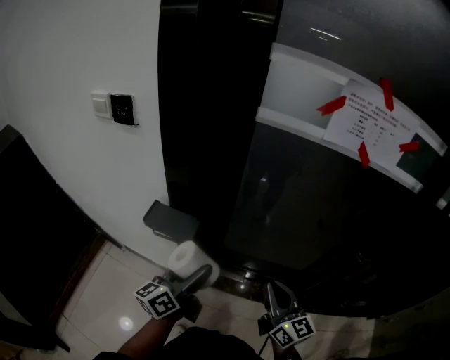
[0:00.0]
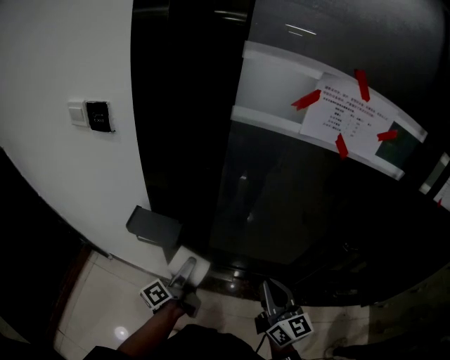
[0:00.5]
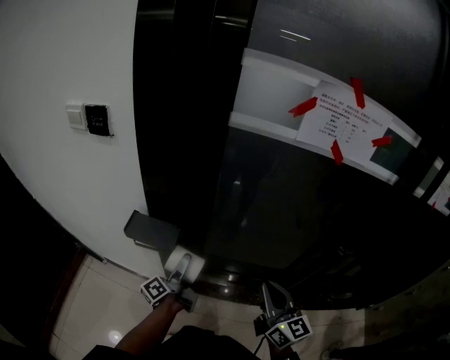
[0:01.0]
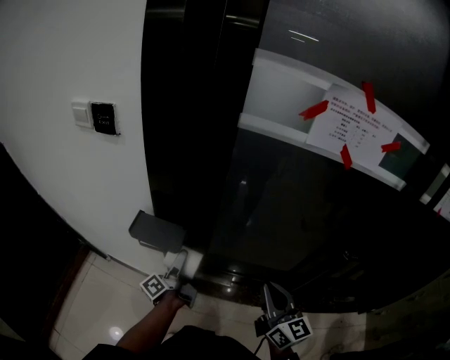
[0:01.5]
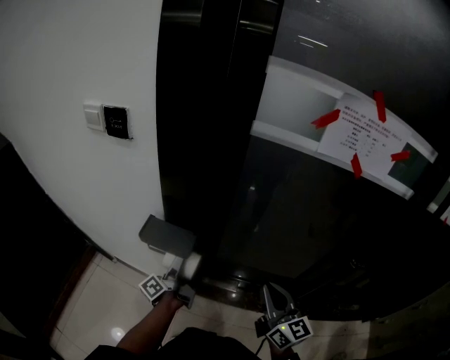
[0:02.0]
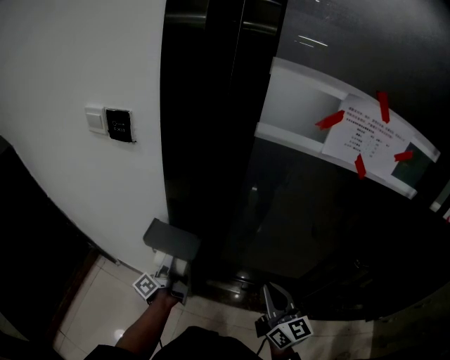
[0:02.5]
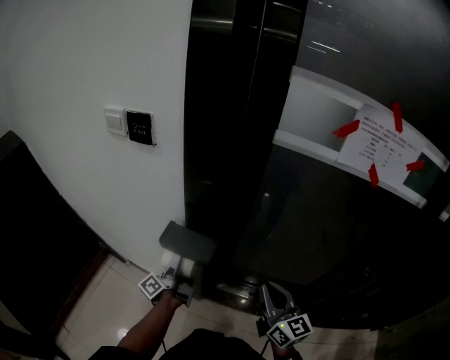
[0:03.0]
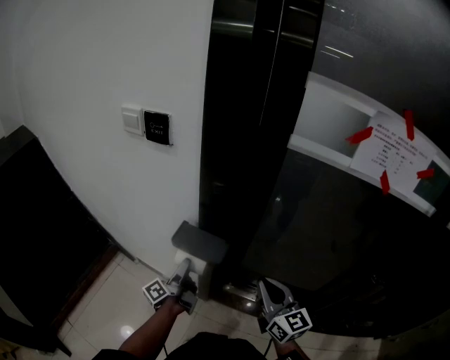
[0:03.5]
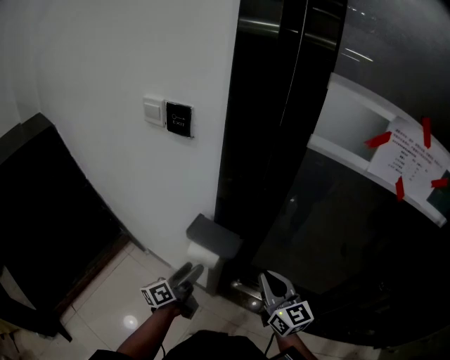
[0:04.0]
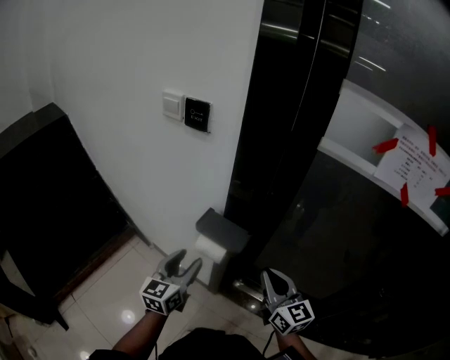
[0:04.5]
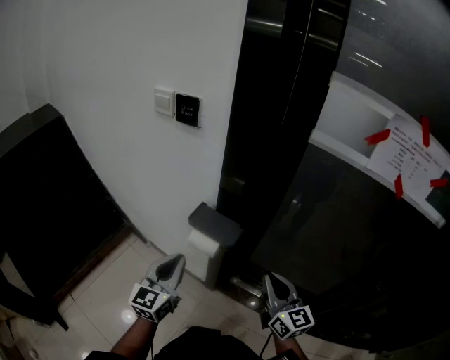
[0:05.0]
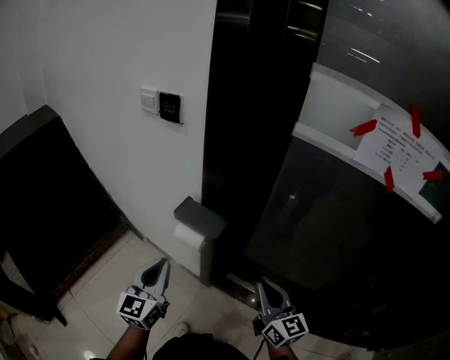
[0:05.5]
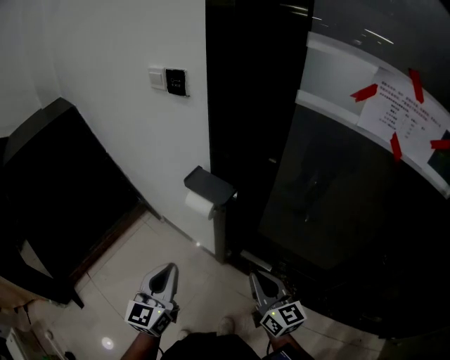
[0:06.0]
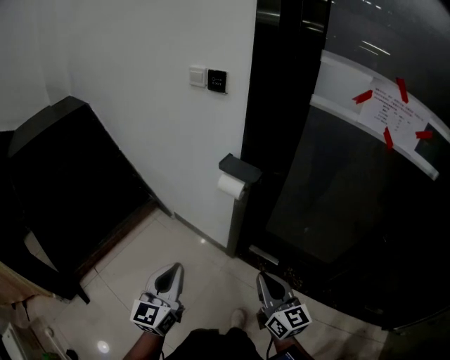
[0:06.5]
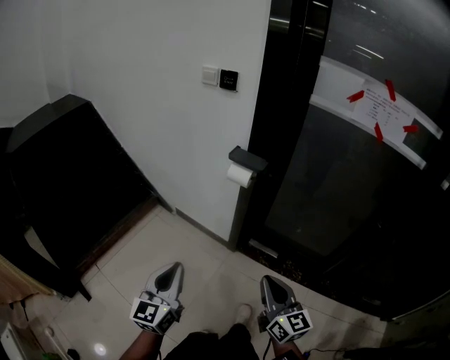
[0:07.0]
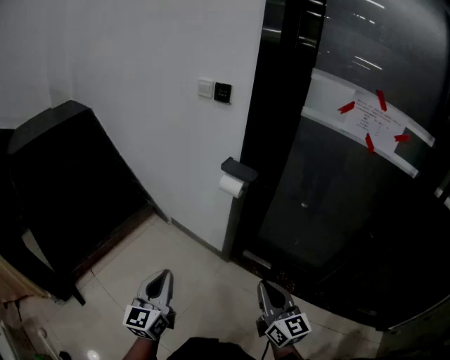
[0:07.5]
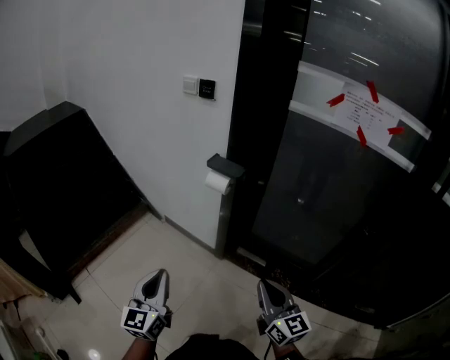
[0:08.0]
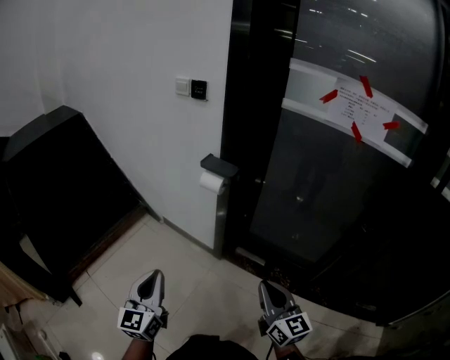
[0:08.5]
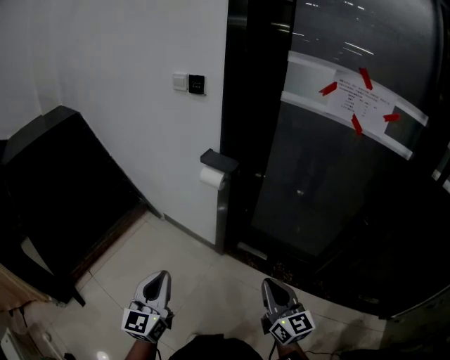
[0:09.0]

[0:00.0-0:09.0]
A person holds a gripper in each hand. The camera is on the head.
0:00.0 to 0:02.0: The left gripper is displaced downward and forward by some 15 cm, and twists roughly 40 degrees counterclockwise, seen from behind.
0:02.0 to 0:04.5: The right gripper shifts about 15 cm to the left and forward; the left gripper heads to the left, upward and backward, covering roughly 15 cm, rolls clockwise, seen from behind, by roughly 80 degrees, and closes.
0:04.5 to 0:07.0: Both grippers move backward, some 40 cm. The left gripper closes its fingers.
0:07.0 to 0:09.0: The right gripper moves to the right, roughly 10 cm, while the left gripper moves to the right, roughly 5 cm.

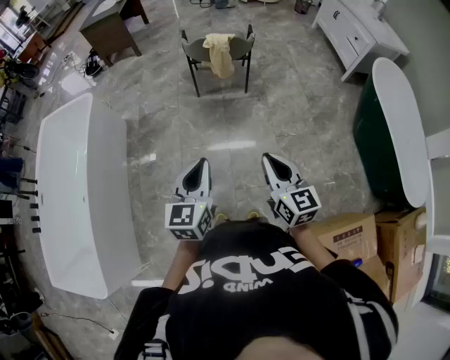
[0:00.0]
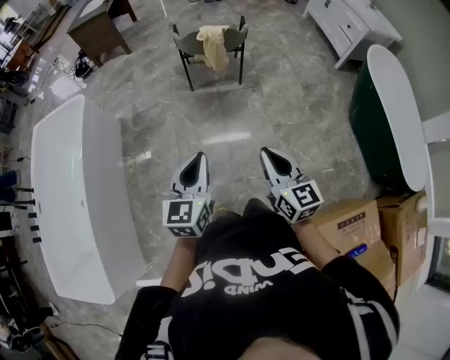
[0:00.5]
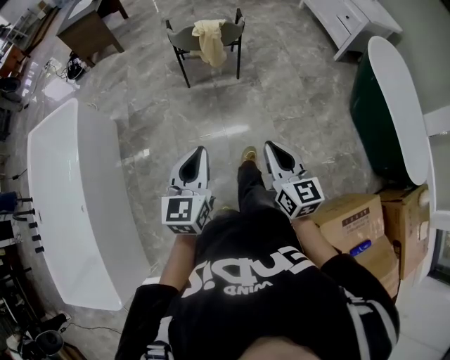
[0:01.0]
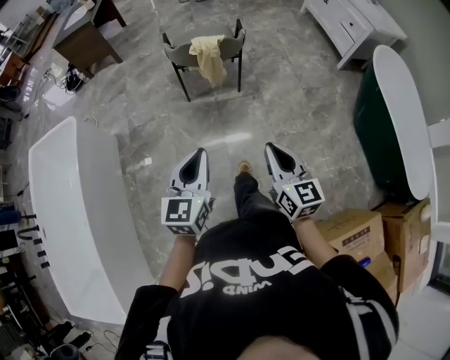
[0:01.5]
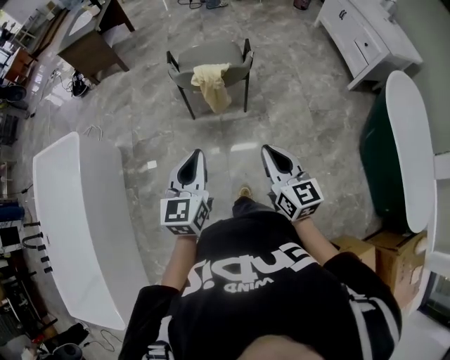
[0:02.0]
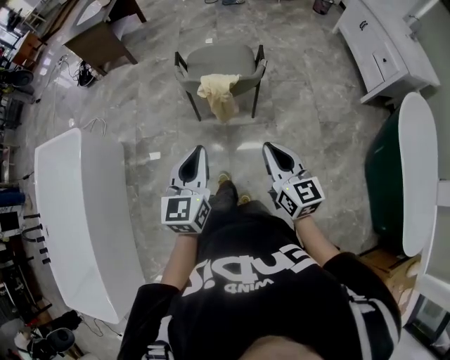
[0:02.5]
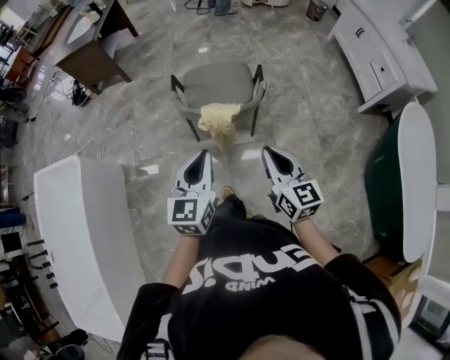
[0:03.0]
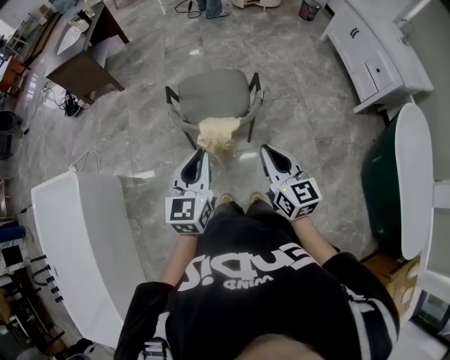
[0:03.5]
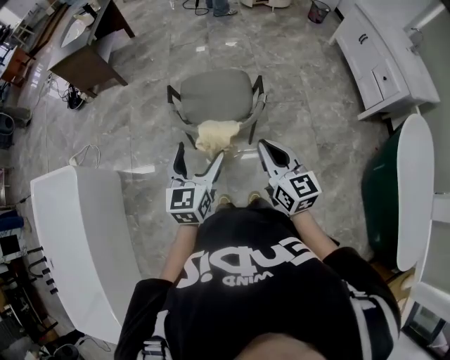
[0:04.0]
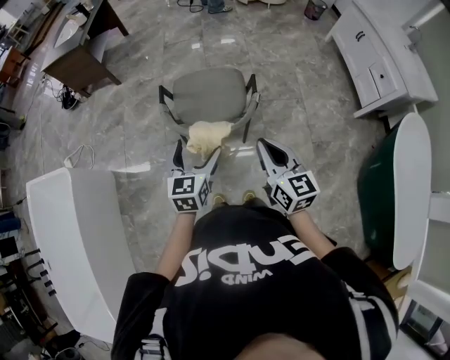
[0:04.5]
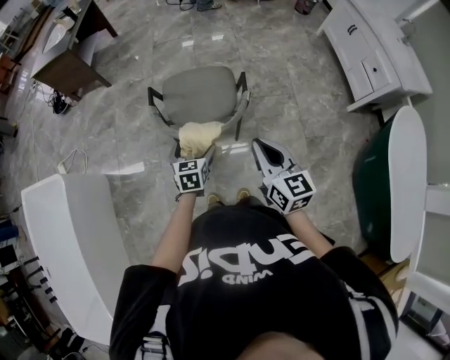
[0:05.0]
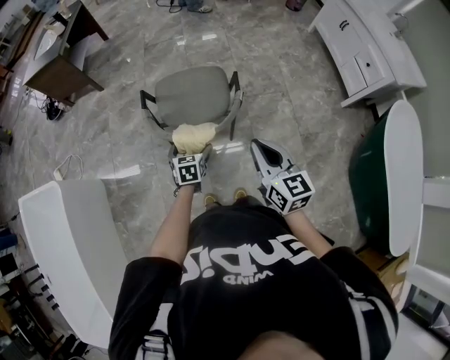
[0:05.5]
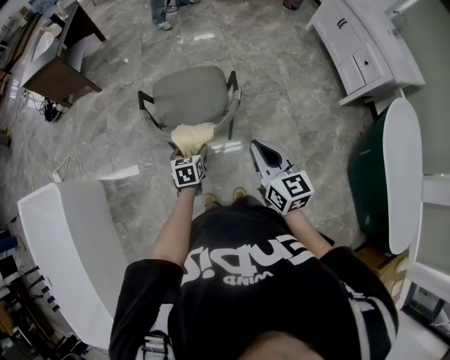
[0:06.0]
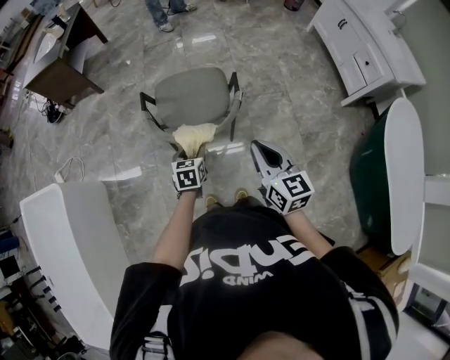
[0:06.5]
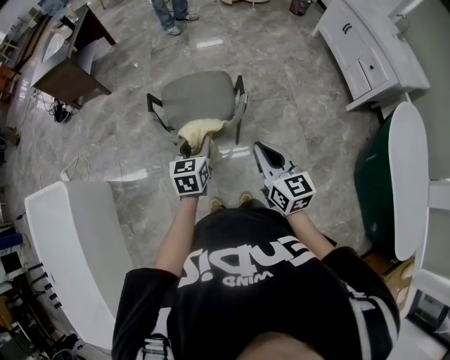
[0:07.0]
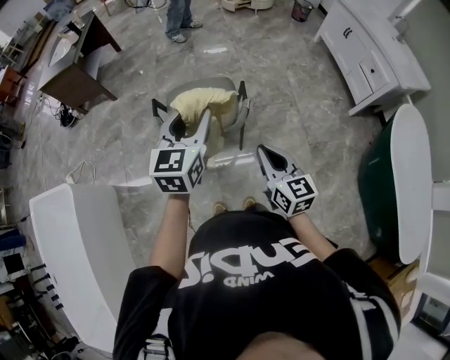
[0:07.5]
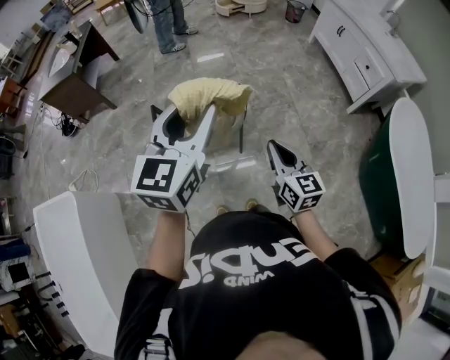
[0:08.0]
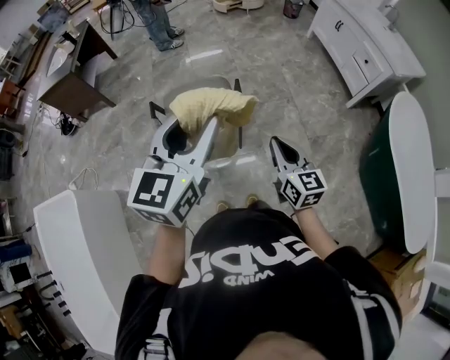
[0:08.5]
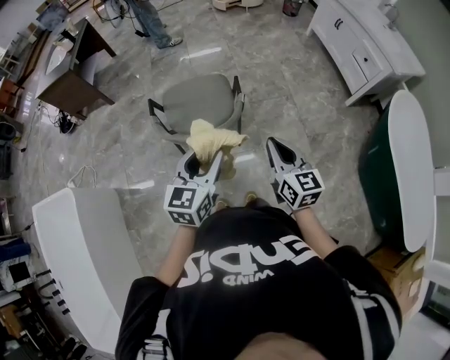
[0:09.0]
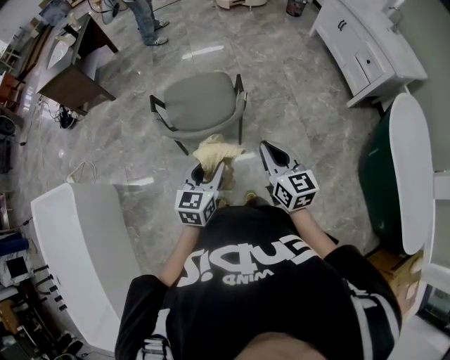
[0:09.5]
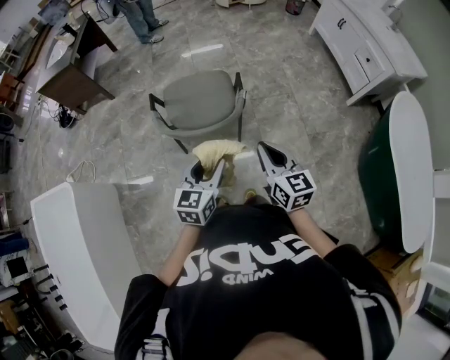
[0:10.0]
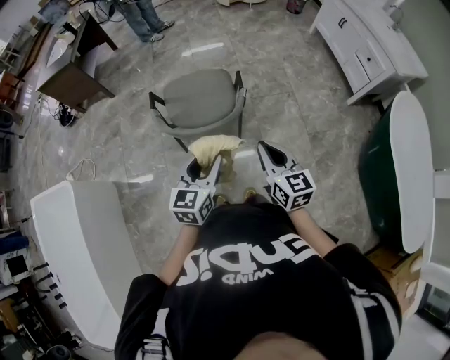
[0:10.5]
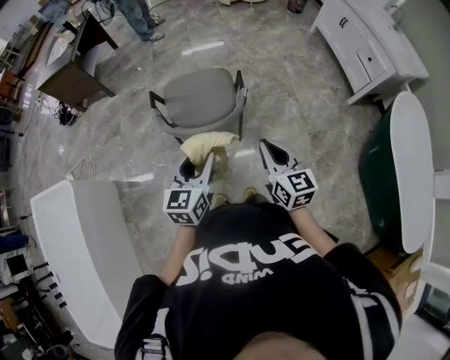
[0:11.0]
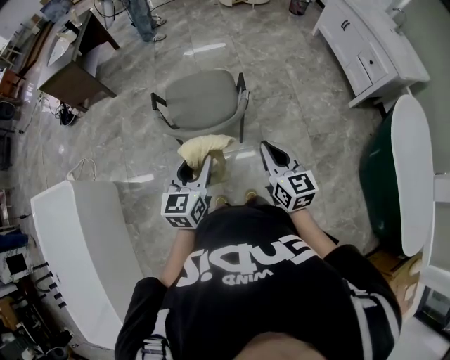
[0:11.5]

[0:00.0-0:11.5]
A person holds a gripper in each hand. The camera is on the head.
0:00.0 to 0:02.0: The two grippers go some 35 cm forward.
0:02.0 to 0:04.0: The two grippers go about 35 cm forward. The left gripper opens its fingers.
0:04.0 to 0:06.0: The left gripper shifts approximately 25 cm downward, and swivels some 30 degrees. Meanwhile the right gripper is displaced to the right by roughly 5 cm.
0:06.0 to 0:07.5: The left gripper heads upward, covering approximately 30 cm, and points its fingers some 30 degrees further upward.
0:07.5 to 0:09.5: The left gripper travels downward and backward by roughly 20 cm.
0:09.5 to 0:11.5: The left gripper ends up roughly 5 cm from where it was.

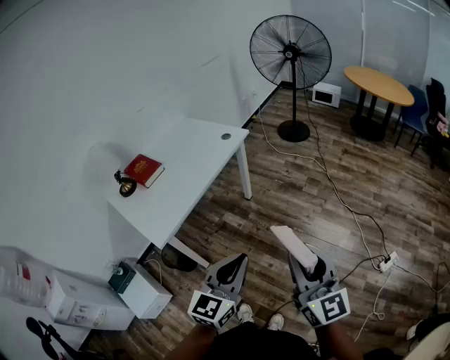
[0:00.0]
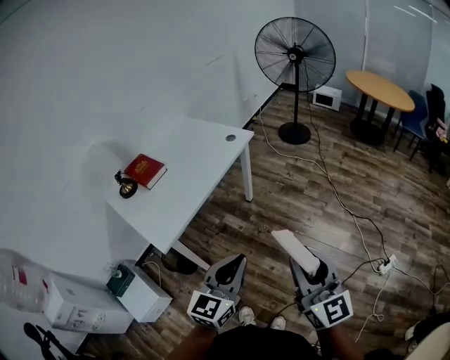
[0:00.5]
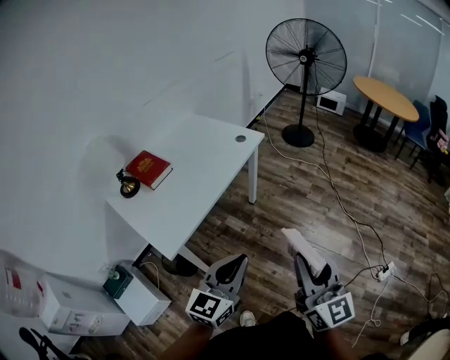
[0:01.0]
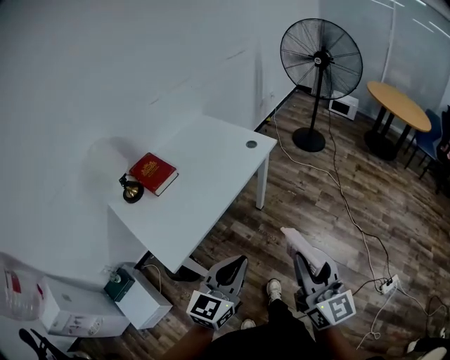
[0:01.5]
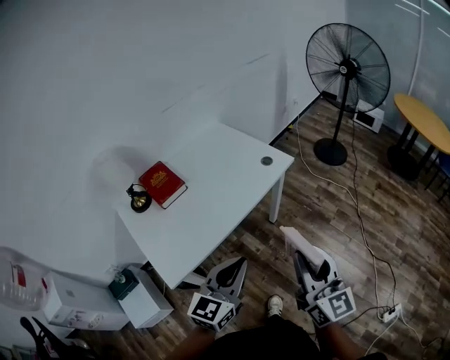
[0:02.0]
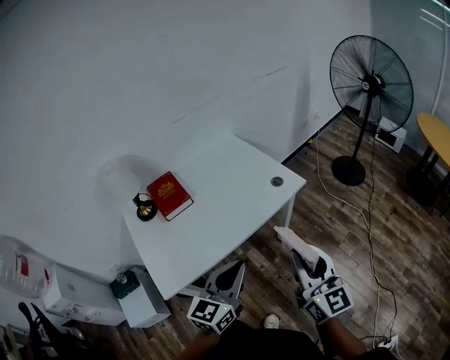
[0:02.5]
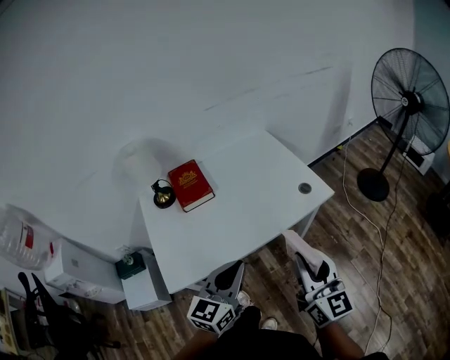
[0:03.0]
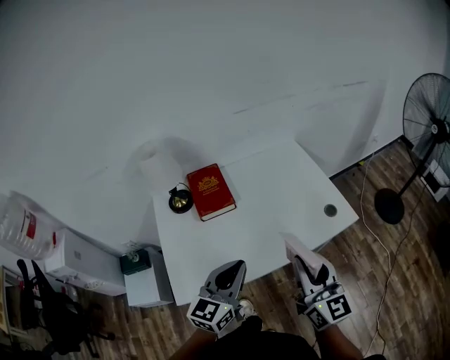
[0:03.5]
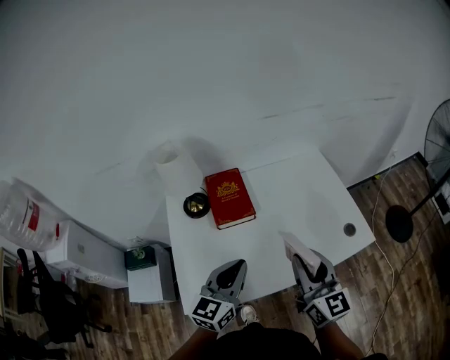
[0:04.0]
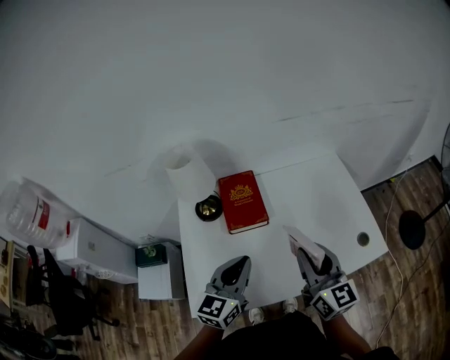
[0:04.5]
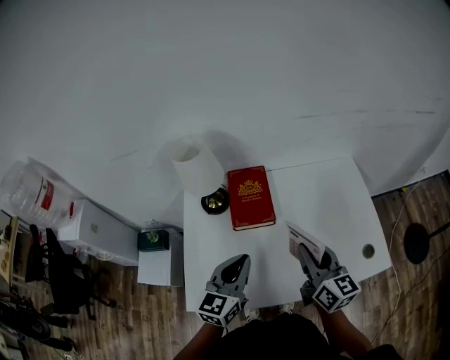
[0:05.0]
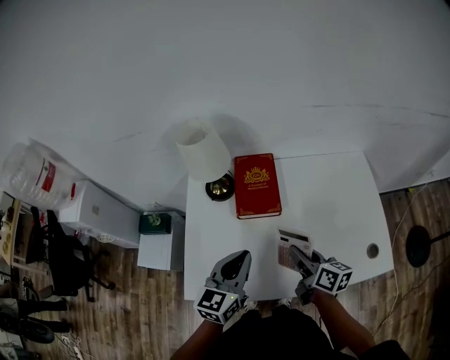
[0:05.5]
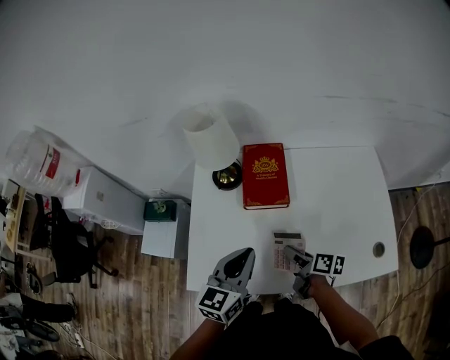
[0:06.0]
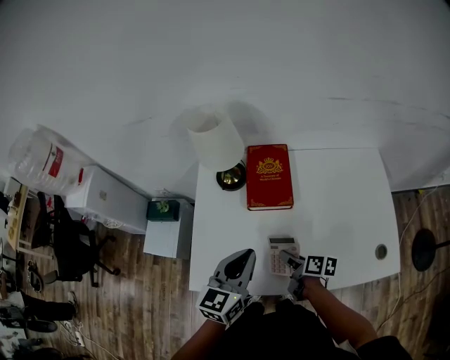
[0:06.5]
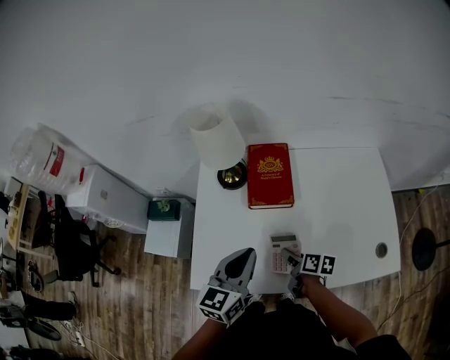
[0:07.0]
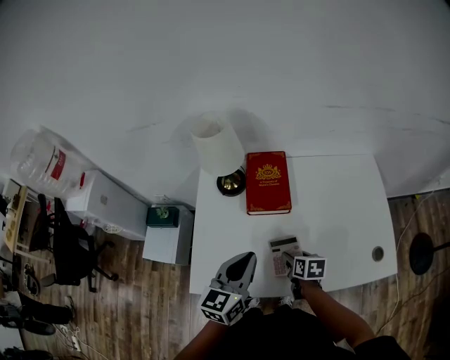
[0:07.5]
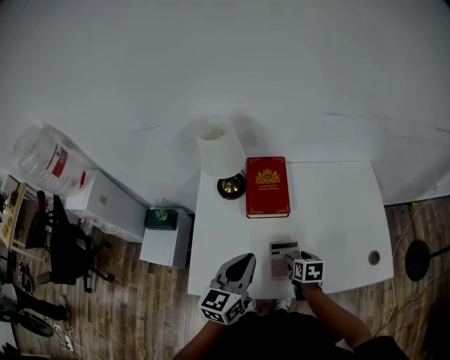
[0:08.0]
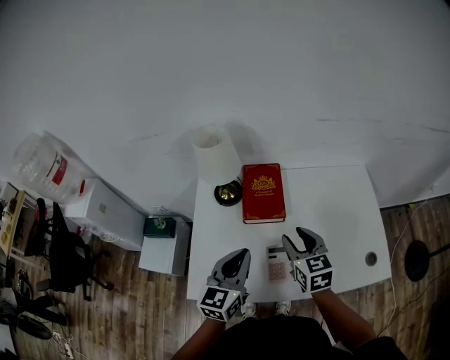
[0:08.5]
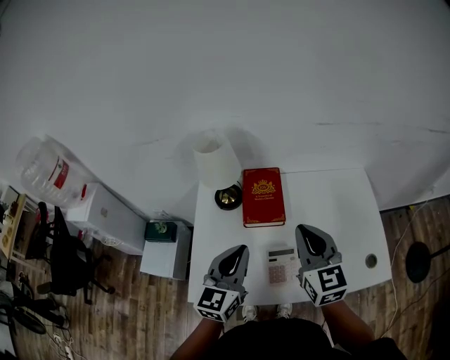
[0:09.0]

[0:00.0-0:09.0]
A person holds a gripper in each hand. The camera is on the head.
0:00.0 to 0:02.0: Both grippers travel together forward and to the left, roughly 30 cm.
0:02.0 to 0:04.5: The left gripper ends up some 35 cm from where it was, and rotates roughly 40 degrees. Meanwhile the right gripper changes place by about 50 cm, and swivels about 40 degrees.
0:04.5 to 0:07.0: The right gripper shifts roughly 30 cm downward, and tips its fingers downward by some 40 degrees. The left gripper shifts some 5 cm downward.
0:07.0 to 0:09.0: The left gripper is displaced upward by about 5 cm, while the right gripper moves upward, approximately 30 cm, twists some 60 degrees counterclockwise, seen from behind, and closes its fingers.
